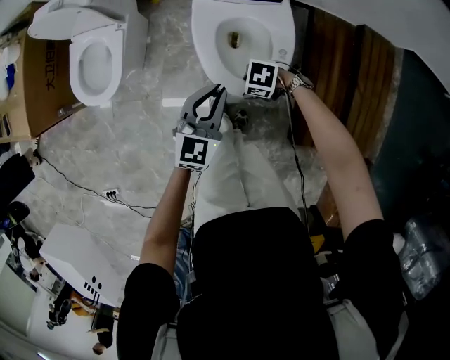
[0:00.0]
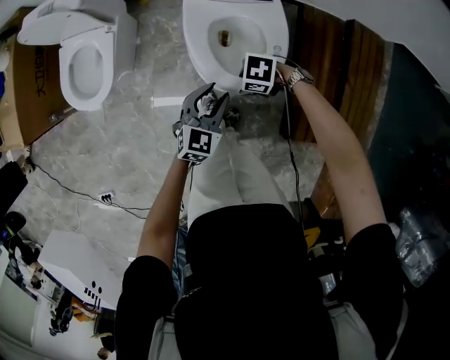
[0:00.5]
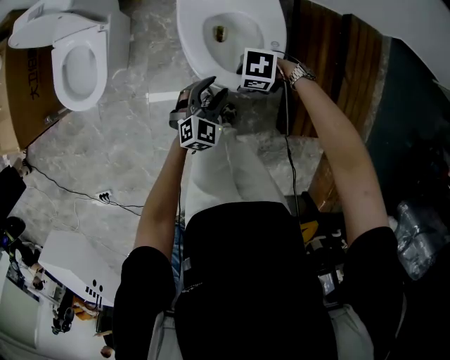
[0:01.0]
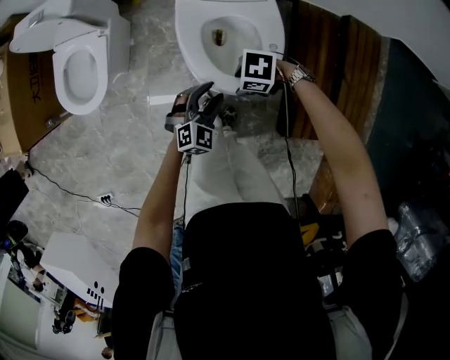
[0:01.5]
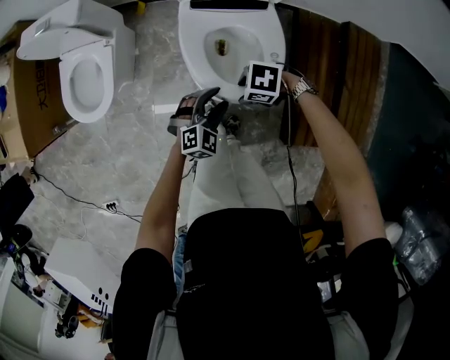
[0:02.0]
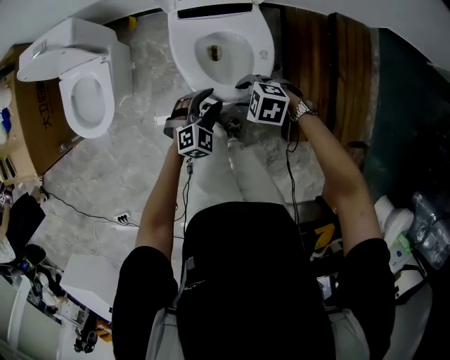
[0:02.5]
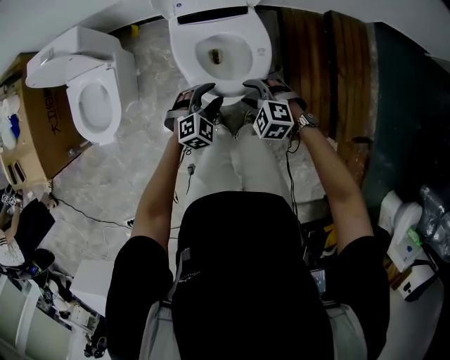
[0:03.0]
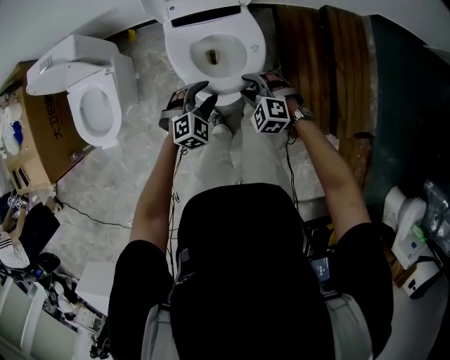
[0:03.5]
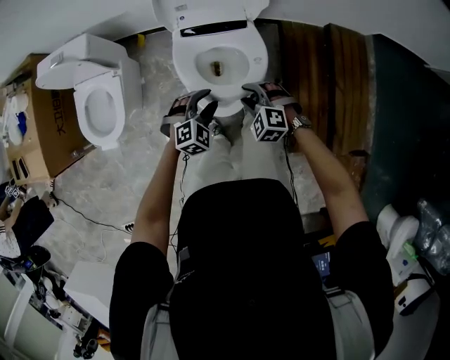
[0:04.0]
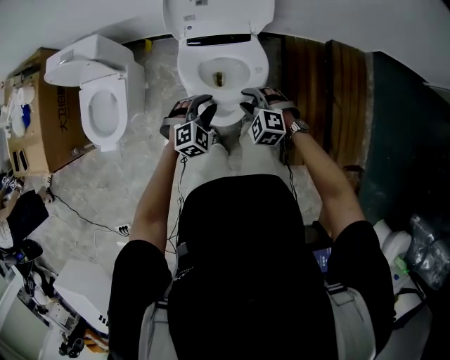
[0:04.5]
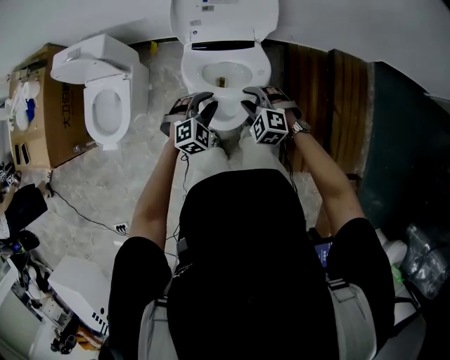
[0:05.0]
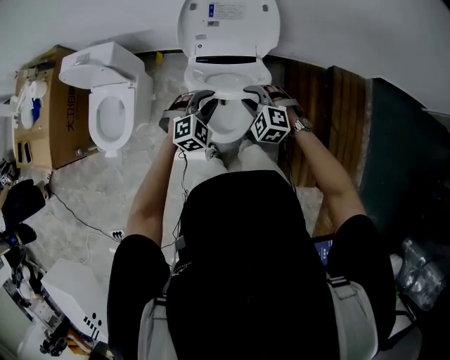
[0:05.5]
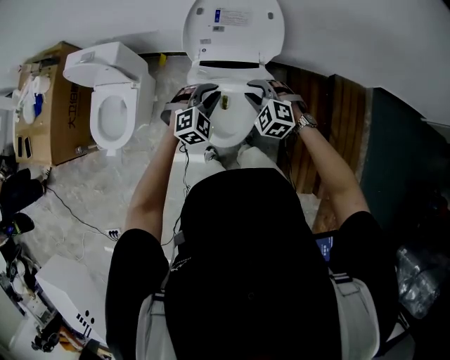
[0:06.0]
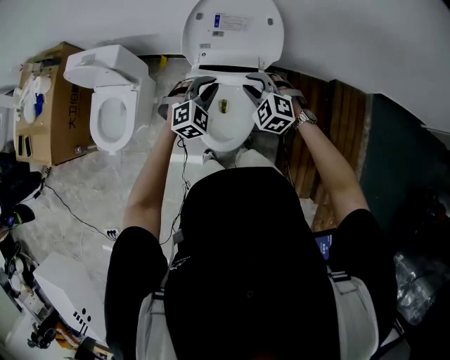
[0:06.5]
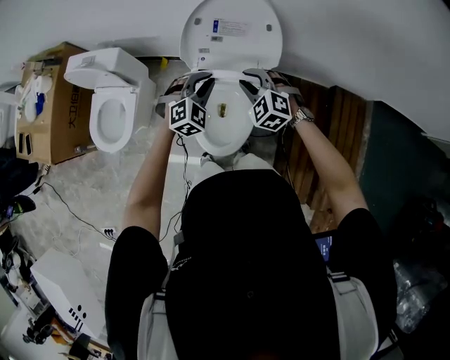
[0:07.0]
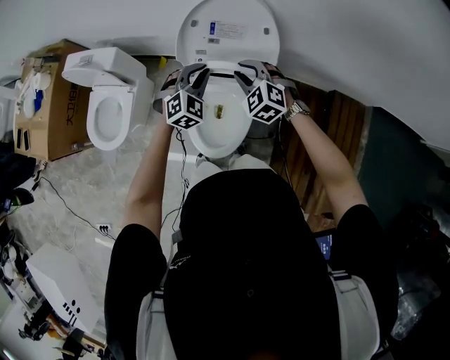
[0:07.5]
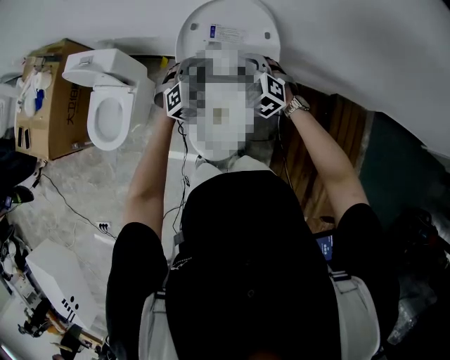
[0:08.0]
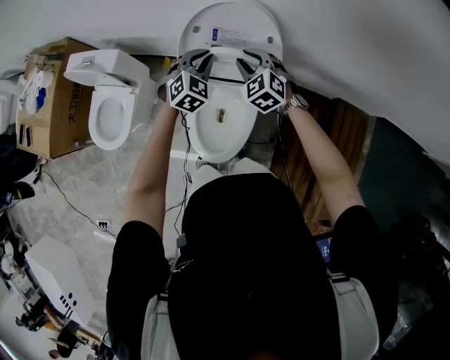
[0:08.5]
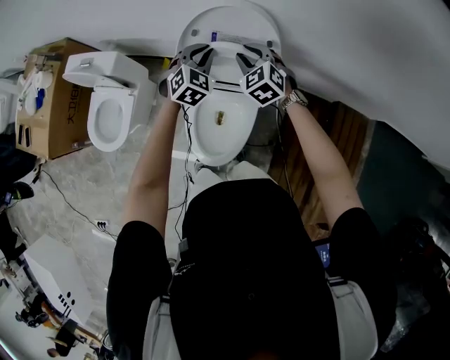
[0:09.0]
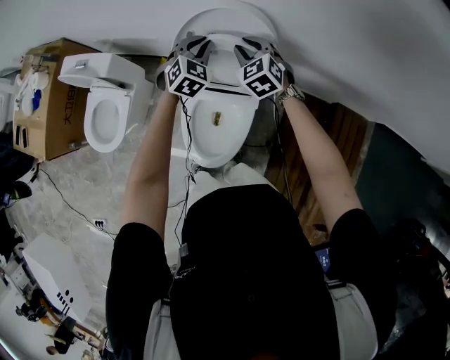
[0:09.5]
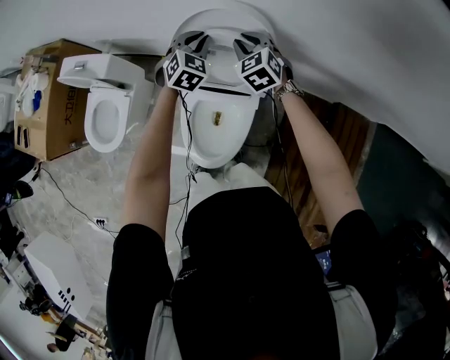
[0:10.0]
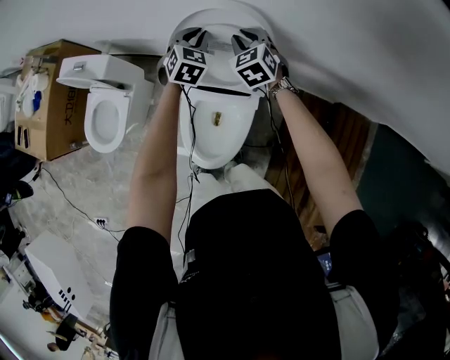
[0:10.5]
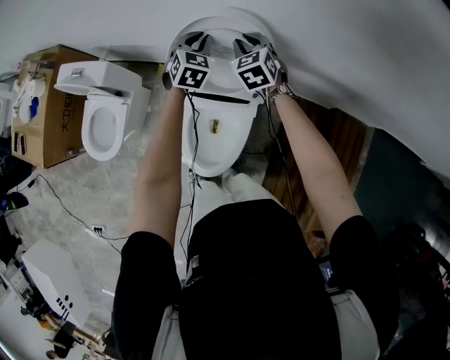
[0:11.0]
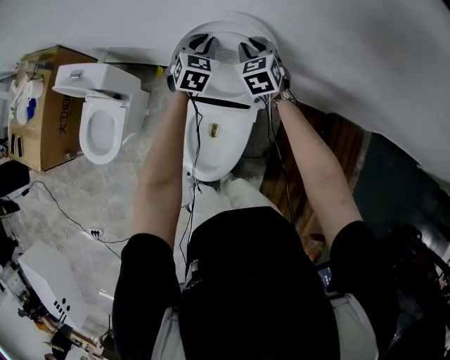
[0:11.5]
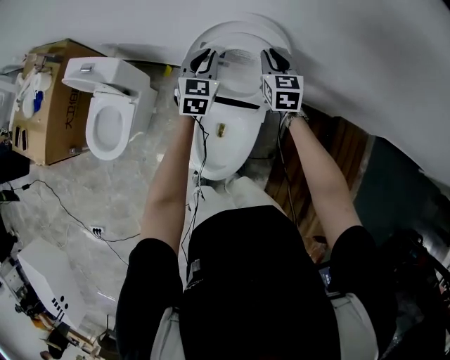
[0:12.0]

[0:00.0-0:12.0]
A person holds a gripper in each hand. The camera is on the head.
0.0 to 2.0 s: The right gripper is displaced upward by about 5 cm. Meanwhile the left gripper goes about 10 cm downward, swivels some 40 degrees, and opens its fingers.
2.0 to 4.0 s: The right gripper moves roughly 5 cm, and rotates some 50 degrees. The left gripper shifts some 5 cm upward.
4.0 to 6.0 s: The two grippers go approximately 15 cm forward and upward. The left gripper closes its fingers.
6.0 to 8.0 s: The grippers both shift forward by approximately 15 cm. The left gripper swivels roughly 20 degrees.
8.0 to 10.0 s: The two grippers go some 15 cm forward.
10.0 to 12.0 s: The left gripper rotates roughly 30 degrees. Meanwhile the right gripper rotates roughly 30 degrees.

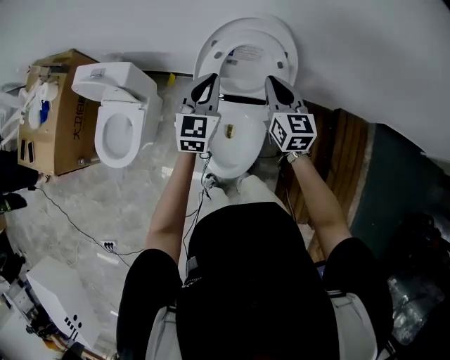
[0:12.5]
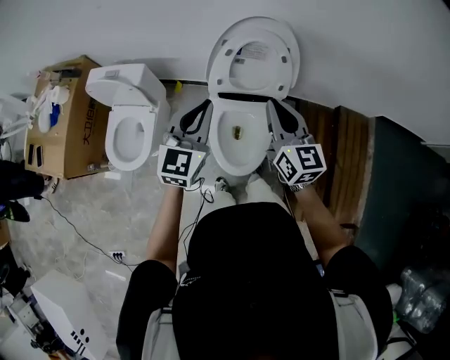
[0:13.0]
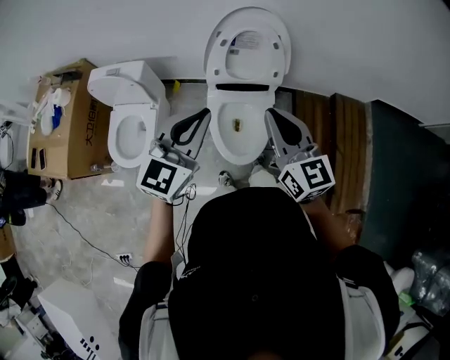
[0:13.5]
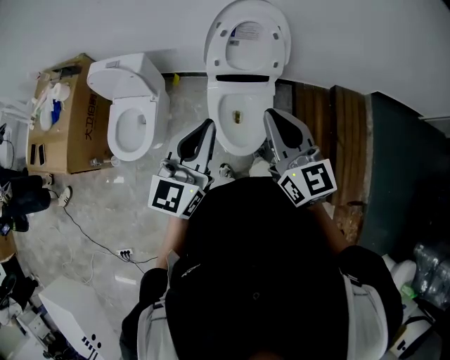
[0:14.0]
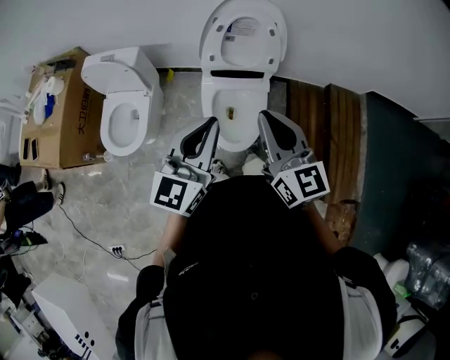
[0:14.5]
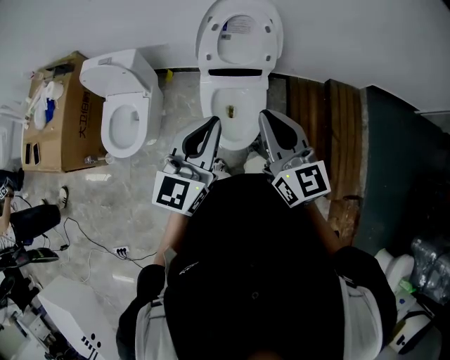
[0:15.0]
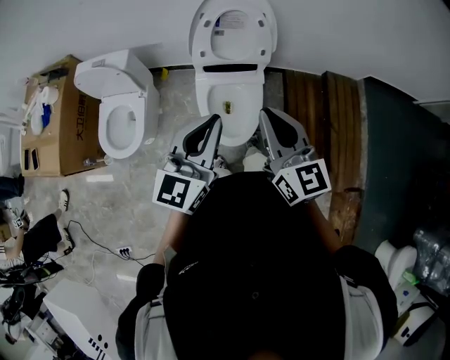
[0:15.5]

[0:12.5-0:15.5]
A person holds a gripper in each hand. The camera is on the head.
12.5 to 14.0 s: Both grippers travel together backward and upward, some 35 cm. The left gripper turns by some 20 degrees.
14.0 to 15.5 s: The left gripper goes approximately 5 cm to the right.

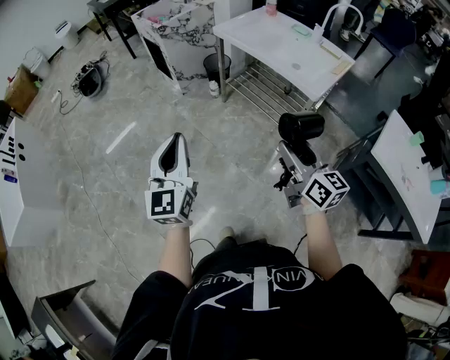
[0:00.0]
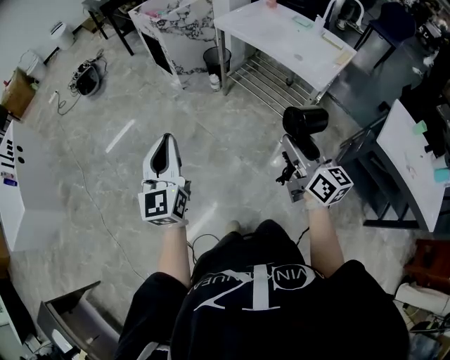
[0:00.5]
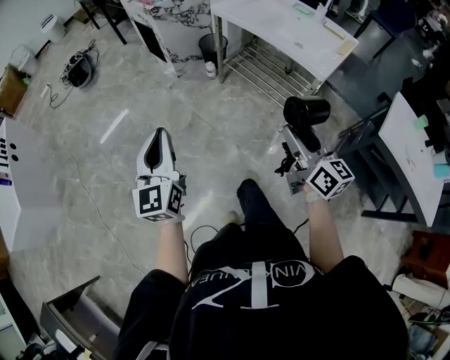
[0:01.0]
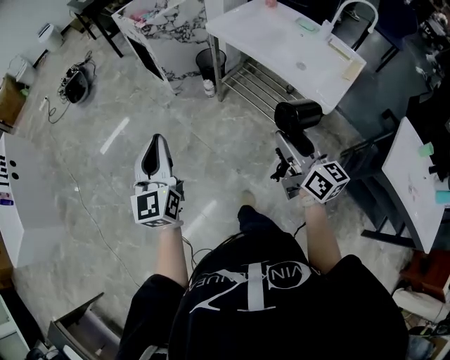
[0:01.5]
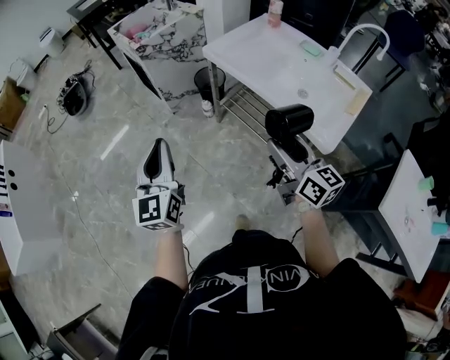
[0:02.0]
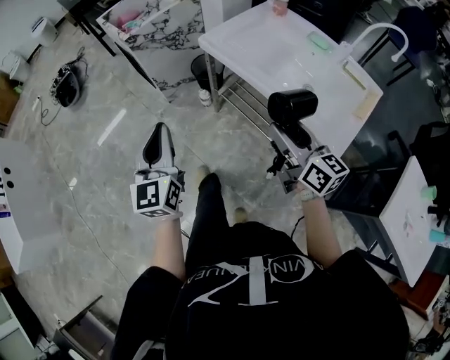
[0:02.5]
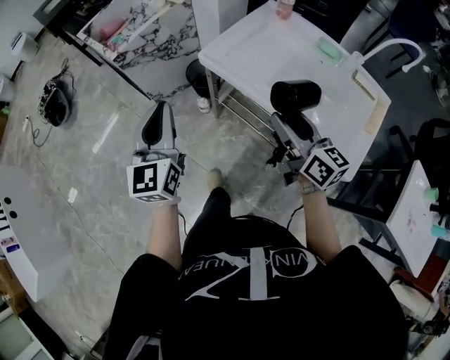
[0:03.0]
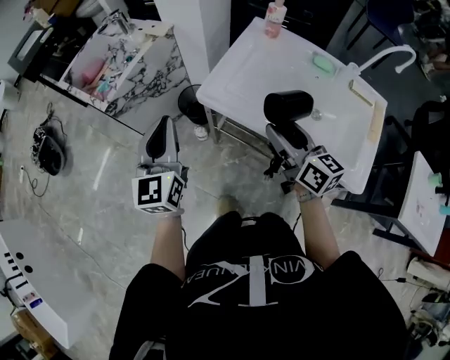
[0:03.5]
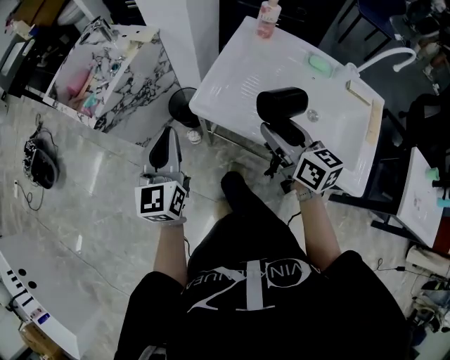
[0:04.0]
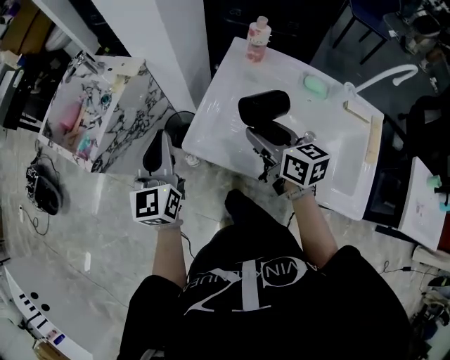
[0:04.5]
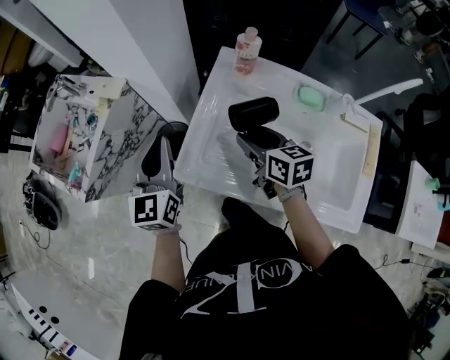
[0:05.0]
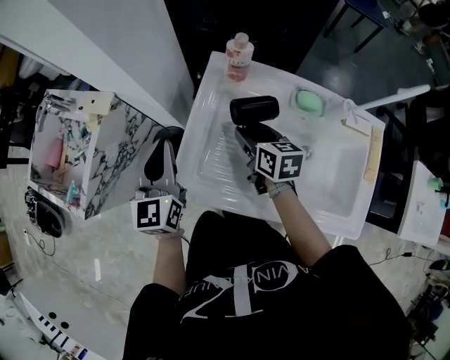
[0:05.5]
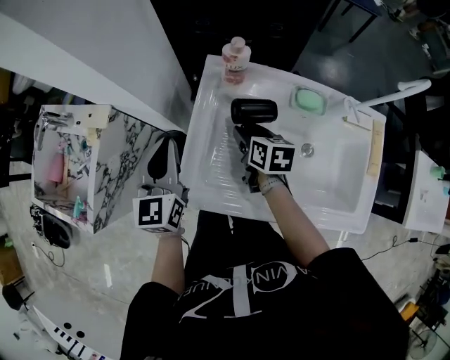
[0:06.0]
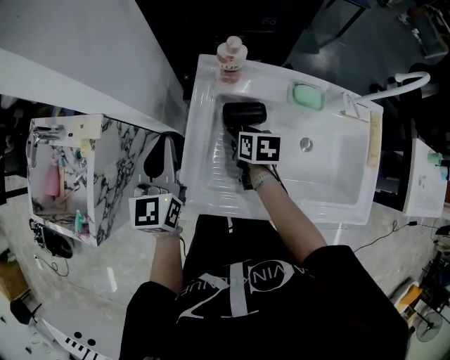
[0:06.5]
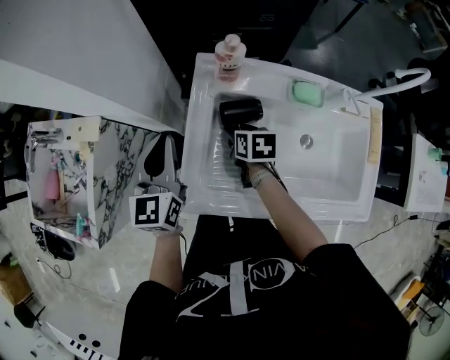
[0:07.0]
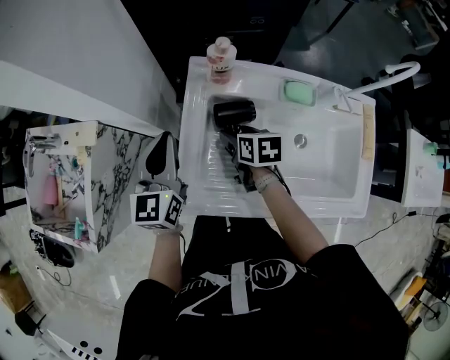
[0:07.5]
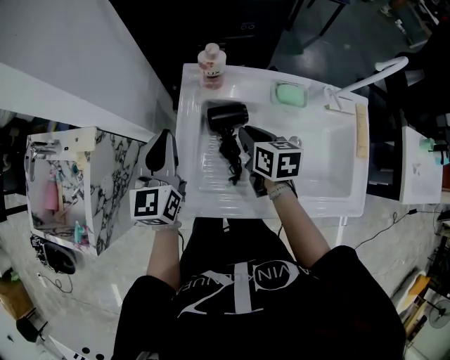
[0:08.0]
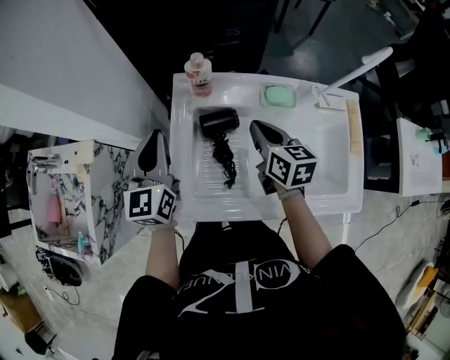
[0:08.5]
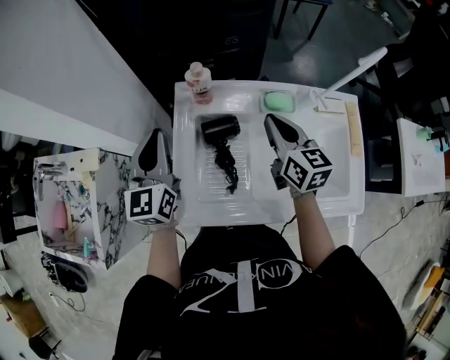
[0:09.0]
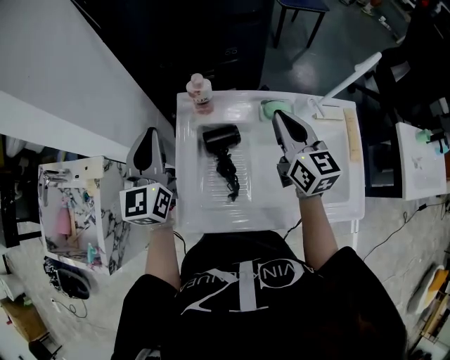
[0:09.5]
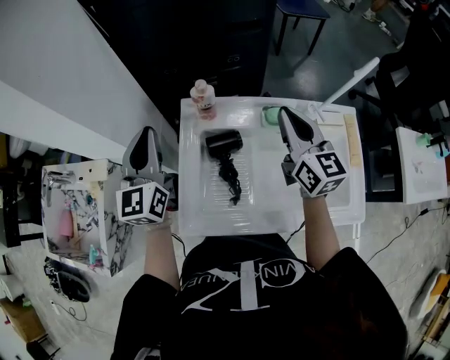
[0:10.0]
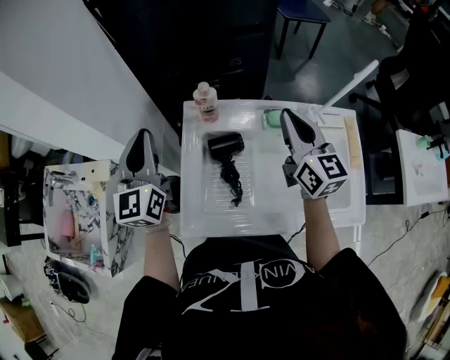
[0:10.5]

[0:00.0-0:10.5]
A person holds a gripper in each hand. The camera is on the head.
0.0 to 2.0 s: Both grippers move forward, some 30 cm.
2.0 to 4.0 s: Both grippers move forward, some 40 cm. The right gripper turns by some 20 degrees; the left gripper rotates roughly 30 degrees.
4.0 to 6.5 s: The right gripper is displaced forward and downward by approximately 35 cm, and tips its fingers downward by approximately 40 degrees. The left gripper shifts about 35 cm forward and to the right.
6.5 to 8.5 s: The right gripper travels downward and to the right by some 10 cm, swivels roughly 30 degrees, and closes, while the left gripper shifts roughly 20 cm downward.
8.5 to 10.5 s: The left gripper goes about 10 cm upward; the right gripper shifts some 15 cm upward and to the right, and changes its angle by about 30 degrees.

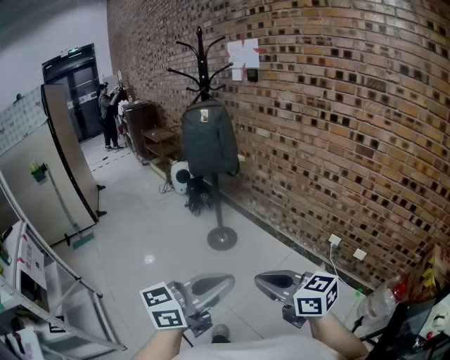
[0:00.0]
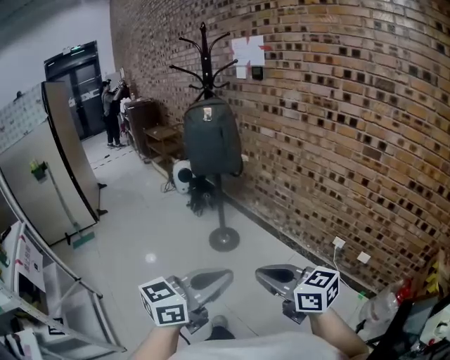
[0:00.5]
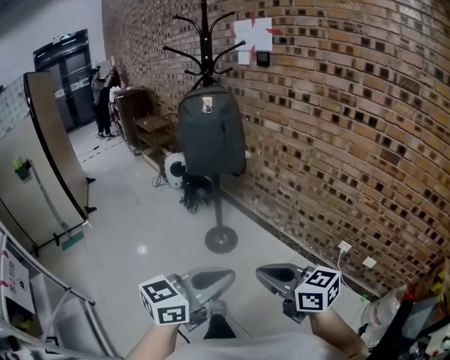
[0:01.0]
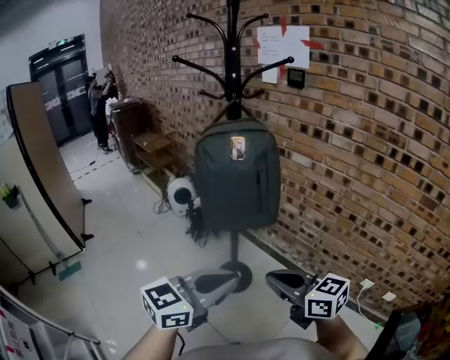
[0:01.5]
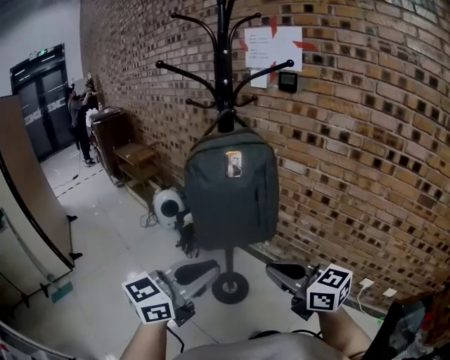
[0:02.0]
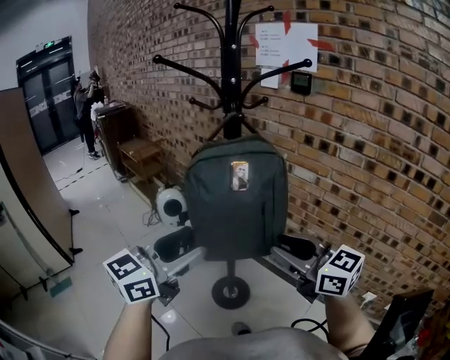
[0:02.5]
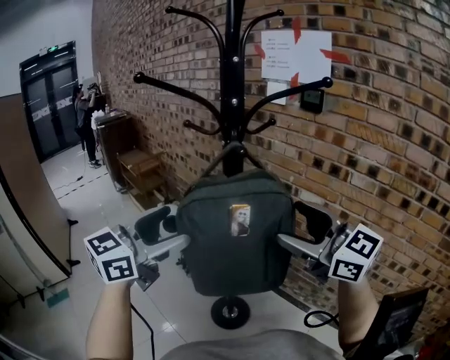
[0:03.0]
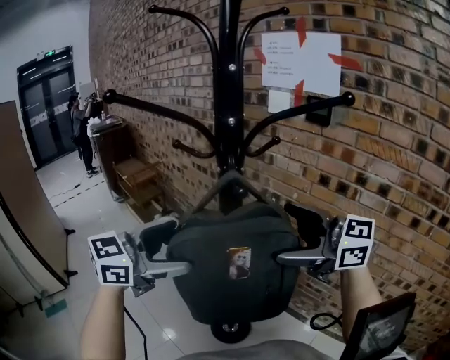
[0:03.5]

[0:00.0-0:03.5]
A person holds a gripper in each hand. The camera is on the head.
0.0 to 2.0 s: The pair of grippers is taken forward, some 60 cm.
2.0 to 3.5 s: The right gripper goes roughly 35 cm forward and upward, rotates roughly 20 degrees, and opens, while the left gripper heads forward, covering some 30 cm, and opens.
